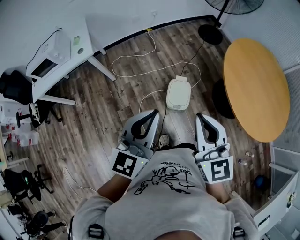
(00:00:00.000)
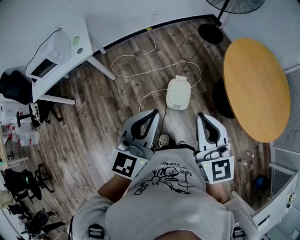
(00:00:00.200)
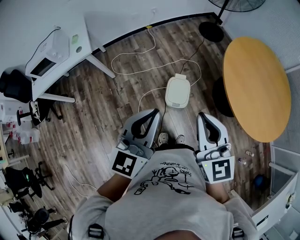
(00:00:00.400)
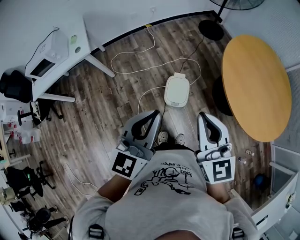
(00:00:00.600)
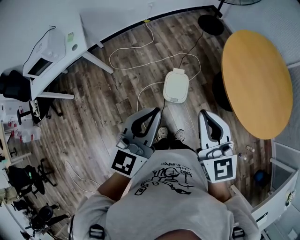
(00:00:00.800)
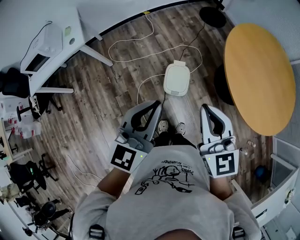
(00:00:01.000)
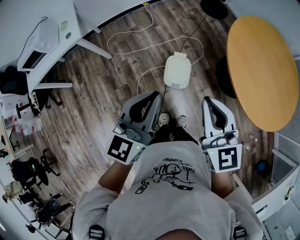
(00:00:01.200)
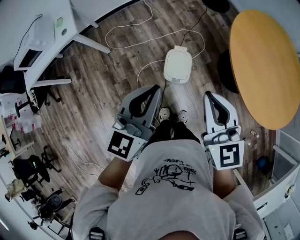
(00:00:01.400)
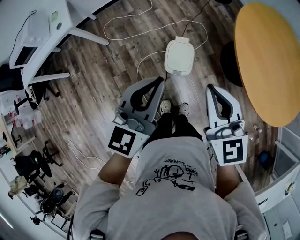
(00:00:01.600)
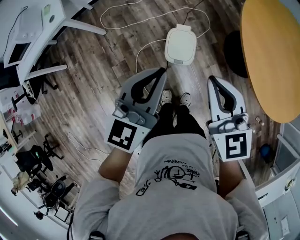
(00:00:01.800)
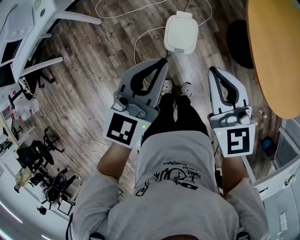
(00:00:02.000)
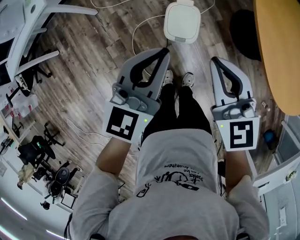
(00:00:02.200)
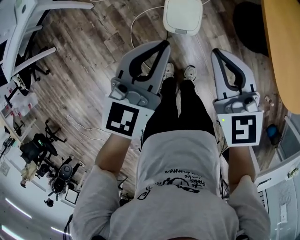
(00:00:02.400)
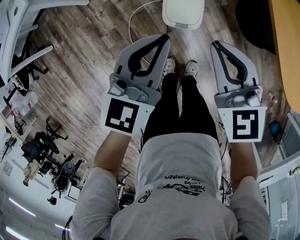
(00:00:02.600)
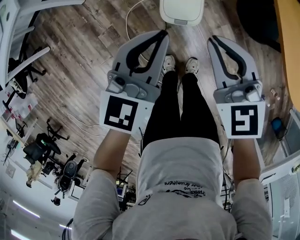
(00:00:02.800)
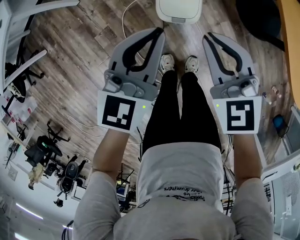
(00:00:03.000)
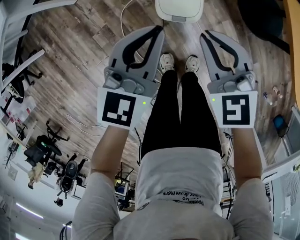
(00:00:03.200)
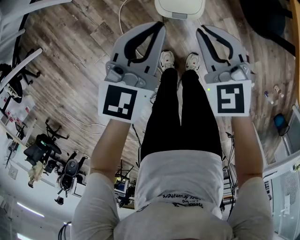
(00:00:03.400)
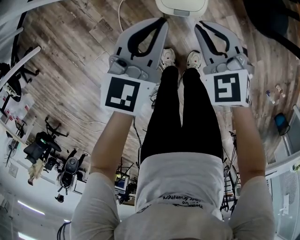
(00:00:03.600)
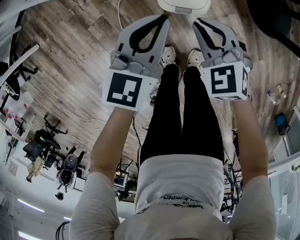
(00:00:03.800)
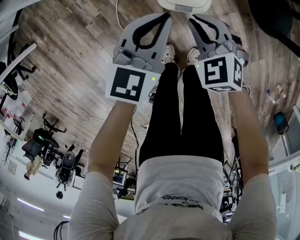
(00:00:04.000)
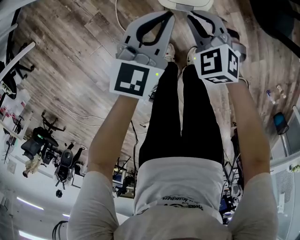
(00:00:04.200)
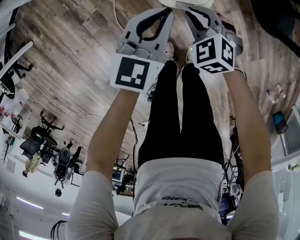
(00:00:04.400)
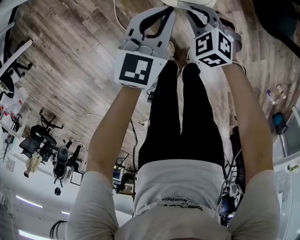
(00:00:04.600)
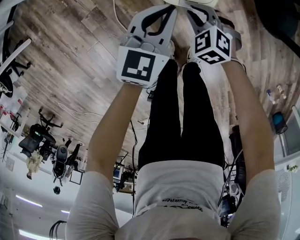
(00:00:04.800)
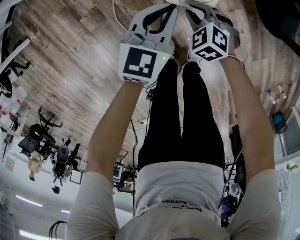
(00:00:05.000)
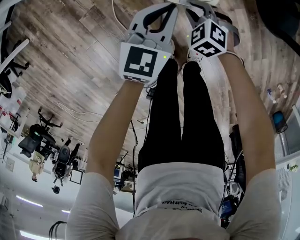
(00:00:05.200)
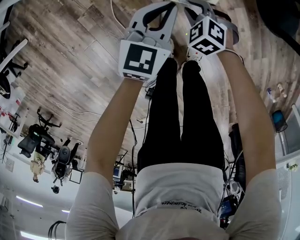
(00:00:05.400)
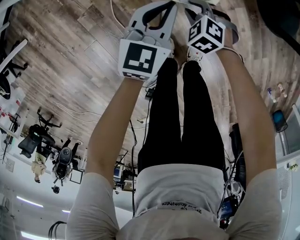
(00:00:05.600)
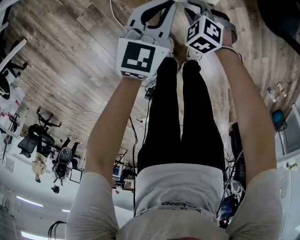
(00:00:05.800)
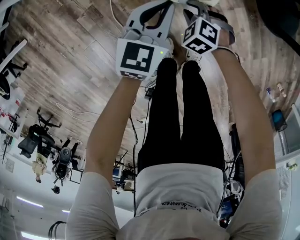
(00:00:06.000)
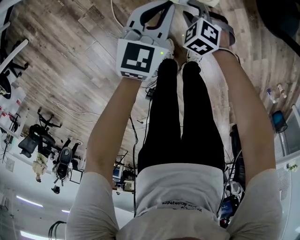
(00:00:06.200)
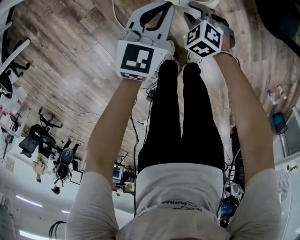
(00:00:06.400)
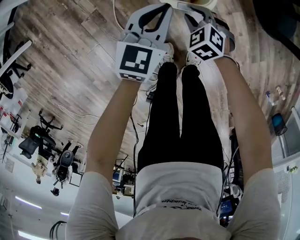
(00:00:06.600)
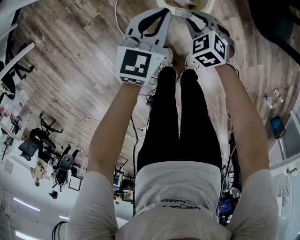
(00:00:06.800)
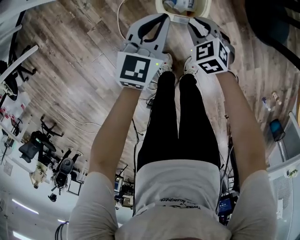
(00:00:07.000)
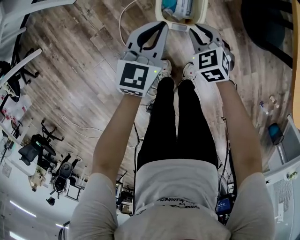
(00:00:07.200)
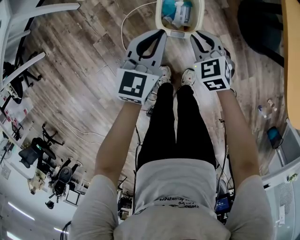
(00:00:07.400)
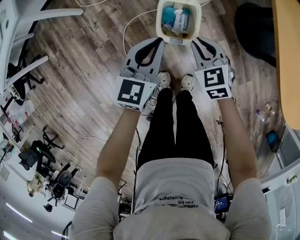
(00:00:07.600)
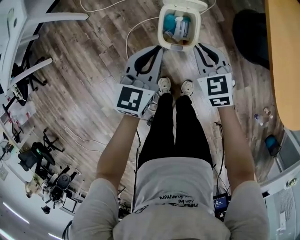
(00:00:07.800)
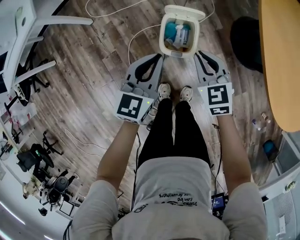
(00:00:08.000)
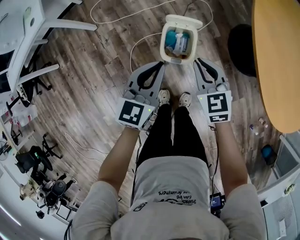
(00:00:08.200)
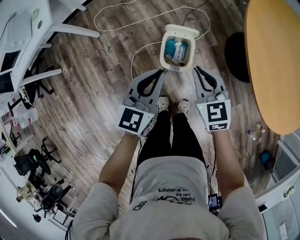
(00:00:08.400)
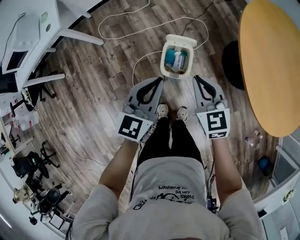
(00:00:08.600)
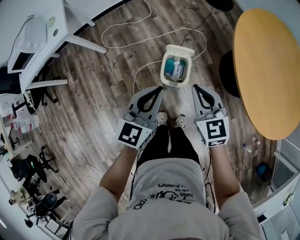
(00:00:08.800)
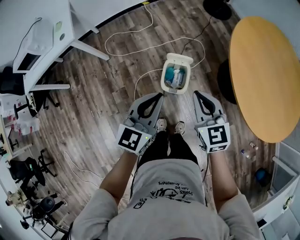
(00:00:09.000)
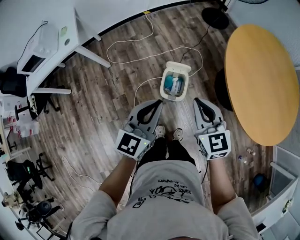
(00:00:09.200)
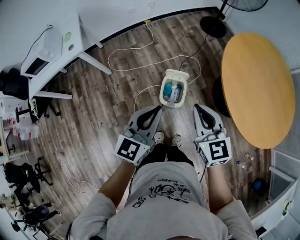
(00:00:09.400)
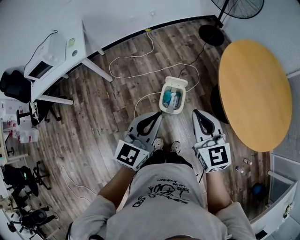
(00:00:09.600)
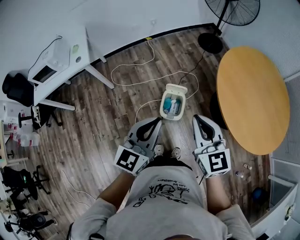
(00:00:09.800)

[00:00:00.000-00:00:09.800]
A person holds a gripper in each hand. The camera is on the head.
00:00:00.000 to 00:00:01.400: The left gripper moves downward, forward and to the right, roughly 10 cm, while the right gripper shifts some 10 cm downward, to the right and forward.
00:00:01.400 to 00:00:02.800: Both grippers move downward, roughly 25 cm.
00:00:02.800 to 00:00:04.200: Both grippers move downward, about 25 cm. The right gripper changes its angle by approximately 30 degrees.
00:00:04.200 to 00:00:05.600: The left gripper moves downward, about 10 cm. The right gripper is displaced downward by about 15 cm.
00:00:05.600 to 00:00:07.000: The two grippers go approximately 10 cm upward.
00:00:07.000 to 00:00:08.400: Both grippers move upward, roughly 30 cm. The right gripper changes its angle by some 30 degrees.
00:00:08.400 to 00:00:09.800: The two grippers go roughly 25 cm upward.

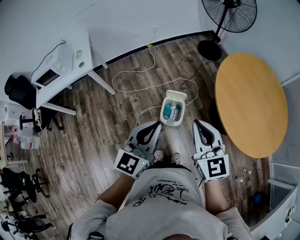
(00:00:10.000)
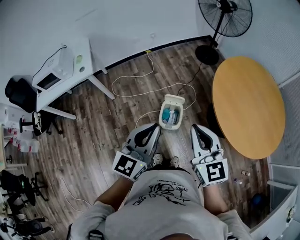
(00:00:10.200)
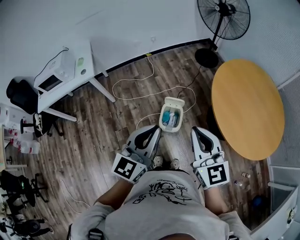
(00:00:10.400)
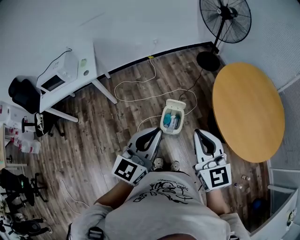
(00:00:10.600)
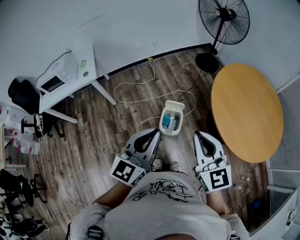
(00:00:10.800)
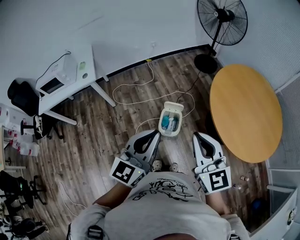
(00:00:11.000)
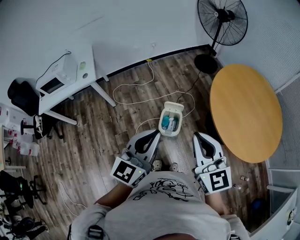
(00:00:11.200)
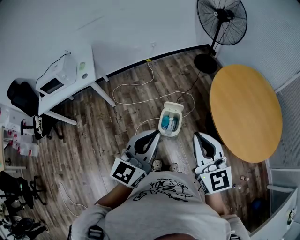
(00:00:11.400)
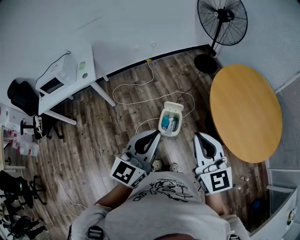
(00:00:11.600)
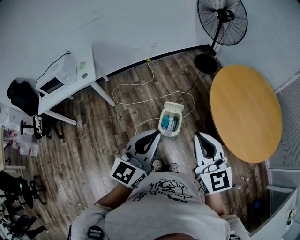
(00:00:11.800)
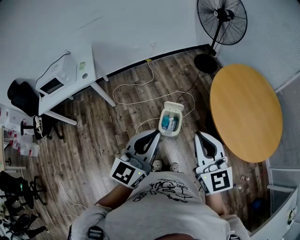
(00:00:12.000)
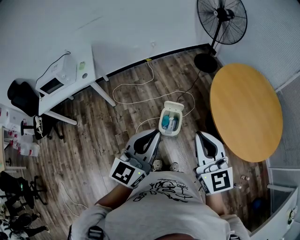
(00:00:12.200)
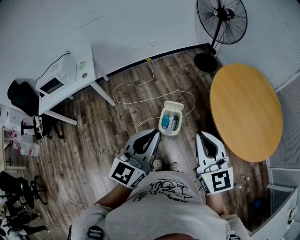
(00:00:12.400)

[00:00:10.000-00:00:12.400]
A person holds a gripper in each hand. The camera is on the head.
00:00:10.000 to 00:00:11.200: The two grippers go some 5 cm upward.
00:00:11.200 to 00:00:12.400: The two grippers keep their place.

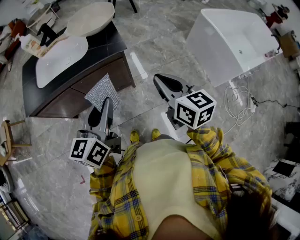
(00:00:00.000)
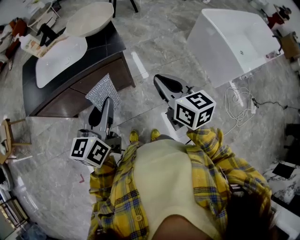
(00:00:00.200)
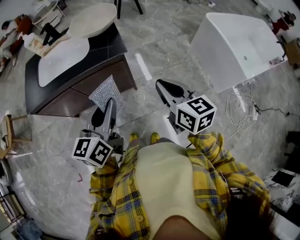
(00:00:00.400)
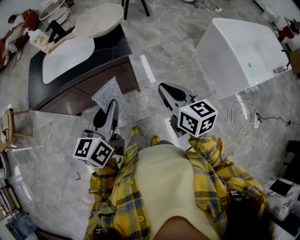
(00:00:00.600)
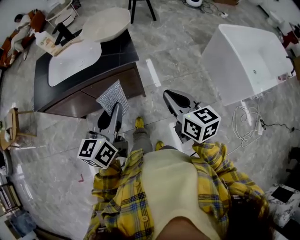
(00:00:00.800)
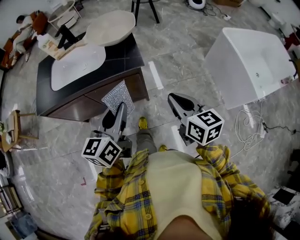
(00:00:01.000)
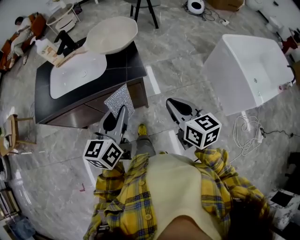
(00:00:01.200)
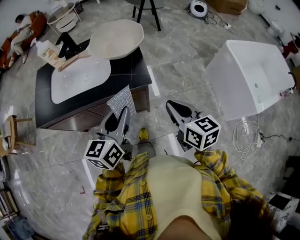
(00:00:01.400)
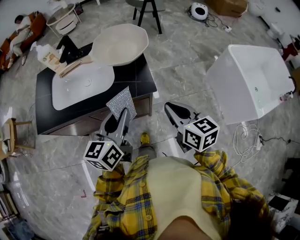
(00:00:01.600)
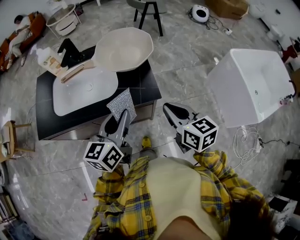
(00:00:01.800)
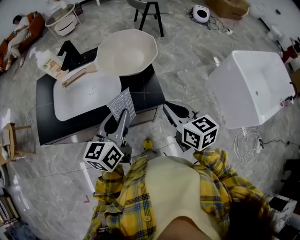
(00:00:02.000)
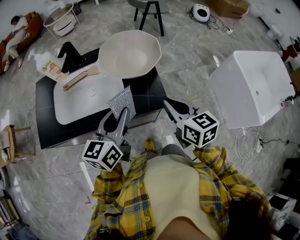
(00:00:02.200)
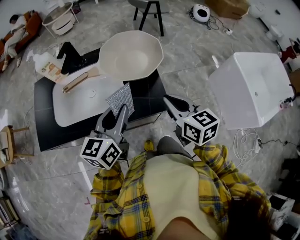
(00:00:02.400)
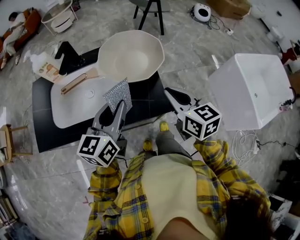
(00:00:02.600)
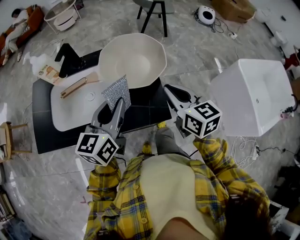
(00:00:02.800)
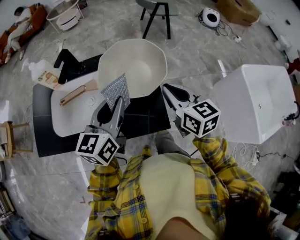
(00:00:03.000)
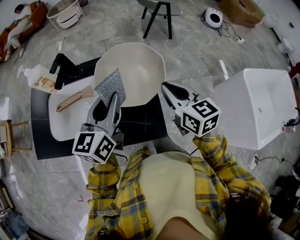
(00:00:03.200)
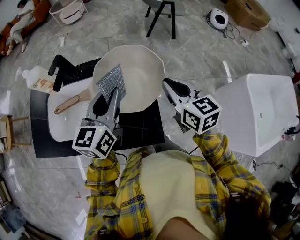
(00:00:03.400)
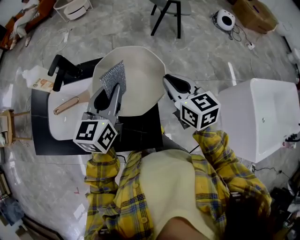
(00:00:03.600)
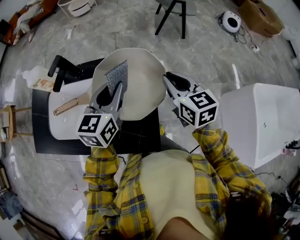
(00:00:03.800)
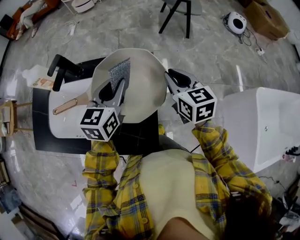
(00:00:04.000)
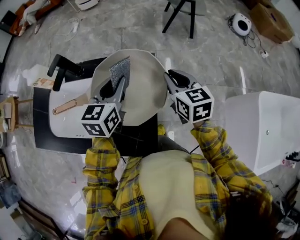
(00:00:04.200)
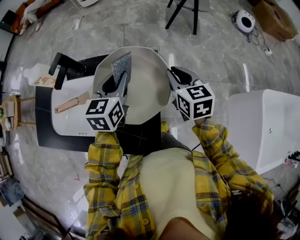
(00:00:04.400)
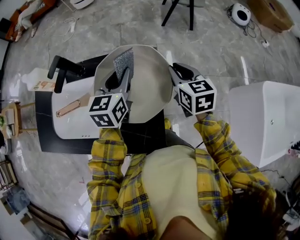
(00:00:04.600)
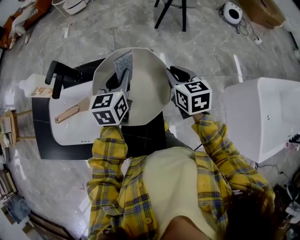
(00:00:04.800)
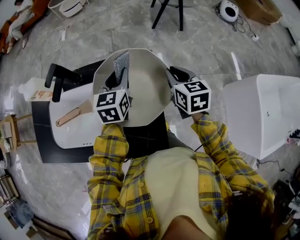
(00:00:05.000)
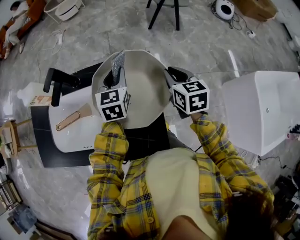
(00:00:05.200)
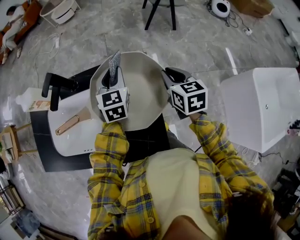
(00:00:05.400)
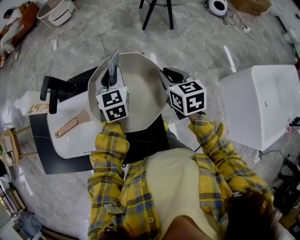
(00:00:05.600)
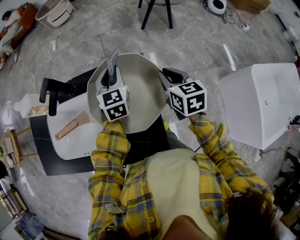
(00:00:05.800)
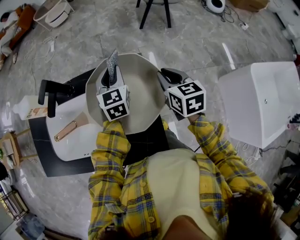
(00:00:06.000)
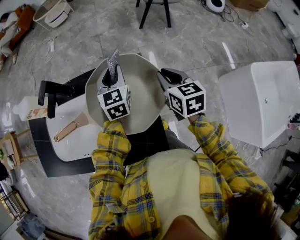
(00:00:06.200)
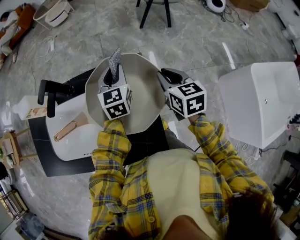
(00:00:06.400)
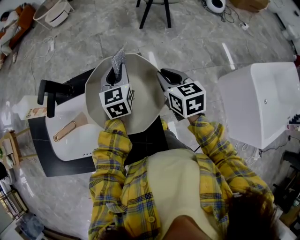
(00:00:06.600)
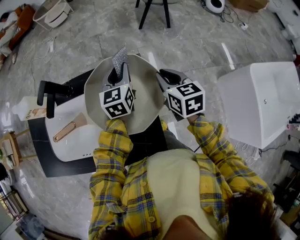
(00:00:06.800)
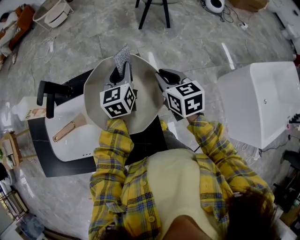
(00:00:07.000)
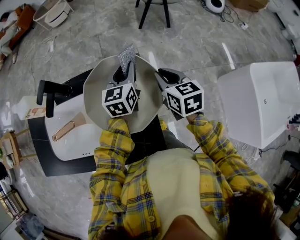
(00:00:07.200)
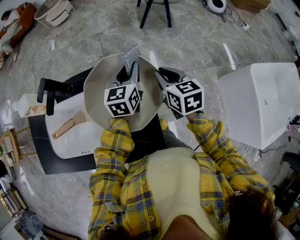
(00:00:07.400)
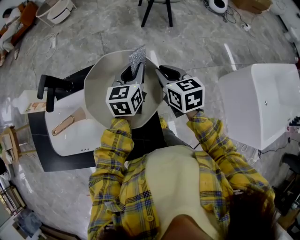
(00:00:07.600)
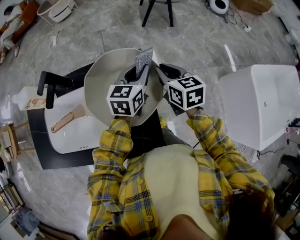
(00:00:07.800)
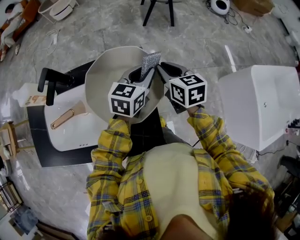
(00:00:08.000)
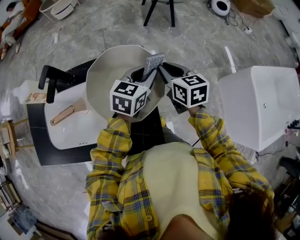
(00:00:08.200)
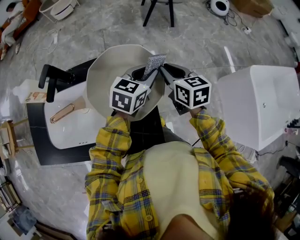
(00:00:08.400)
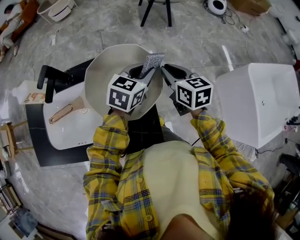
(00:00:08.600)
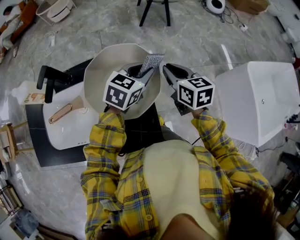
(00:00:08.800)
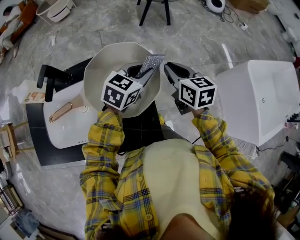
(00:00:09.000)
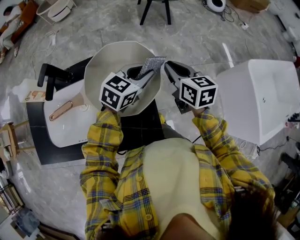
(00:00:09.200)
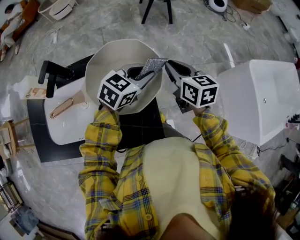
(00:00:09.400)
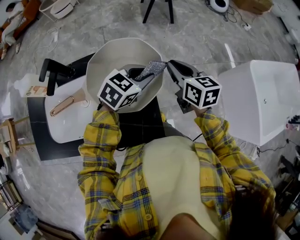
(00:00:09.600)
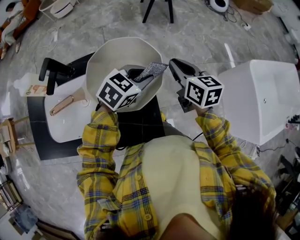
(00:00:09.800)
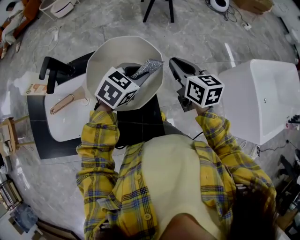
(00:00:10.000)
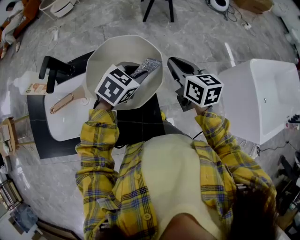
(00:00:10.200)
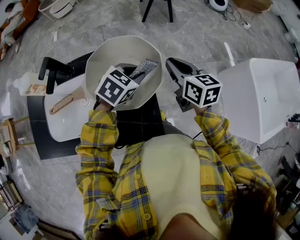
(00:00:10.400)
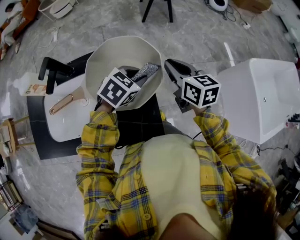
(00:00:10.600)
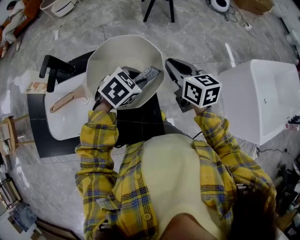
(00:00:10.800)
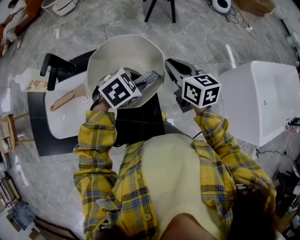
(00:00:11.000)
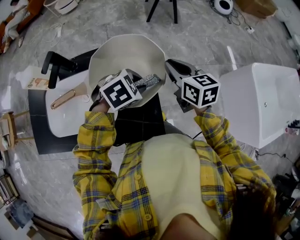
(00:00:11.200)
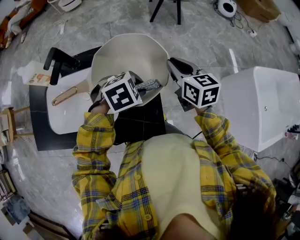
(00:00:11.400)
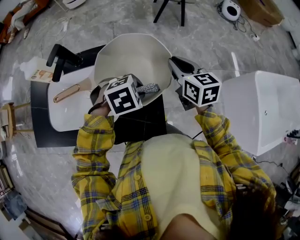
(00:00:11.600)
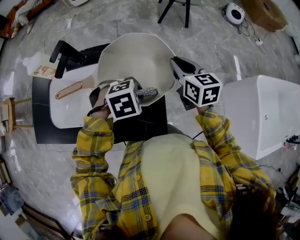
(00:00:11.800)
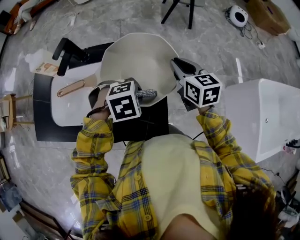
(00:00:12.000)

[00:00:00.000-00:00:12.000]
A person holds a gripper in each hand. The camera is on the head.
00:00:00.000 to 00:00:01.600: The grippers both shift forward by approximately 15 cm.
00:00:01.600 to 00:00:03.000: The two grippers go roughly 20 cm forward.
00:00:03.000 to 00:00:04.400: The grippers both shift forward by some 20 cm. The left gripper turns by some 20 degrees.
00:00:04.400 to 00:00:06.000: The left gripper shifts approximately 10 cm forward.
00:00:06.000 to 00:00:07.600: The left gripper heads to the right, covering some 10 cm, and rotates about 20 degrees.
00:00:07.600 to 00:00:09.000: The left gripper travels backward and to the right by some 10 cm, and rotates approximately 30 degrees. The right gripper changes place by approximately 5 cm.
00:00:09.000 to 00:00:10.400: The left gripper shifts by roughly 5 cm.
00:00:10.400 to 00:00:12.000: The left gripper travels backward by approximately 10 cm, and swivels about 30 degrees; the right gripper is displaced to the left by approximately 5 cm.
